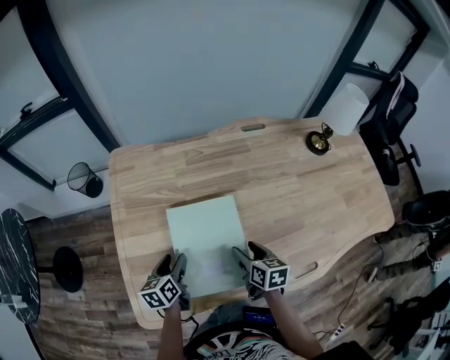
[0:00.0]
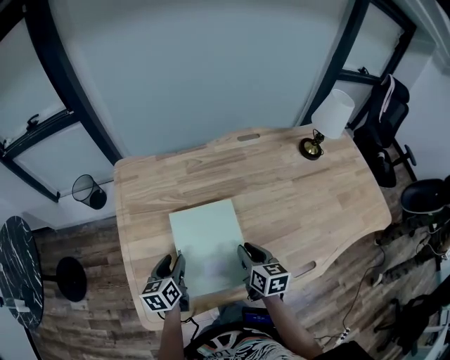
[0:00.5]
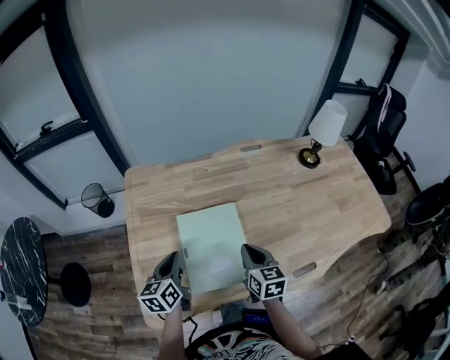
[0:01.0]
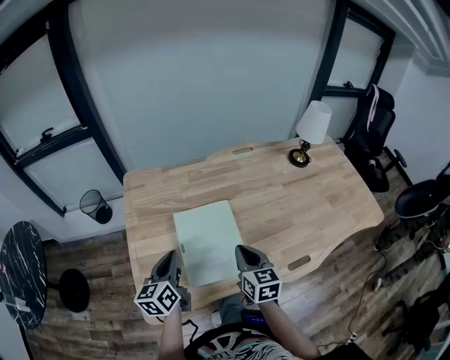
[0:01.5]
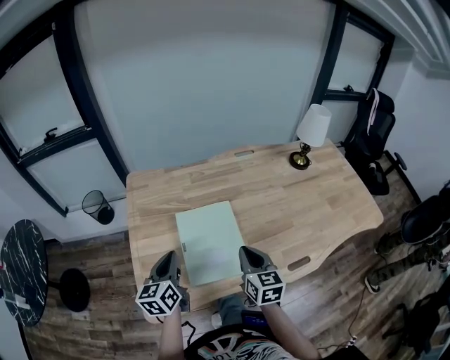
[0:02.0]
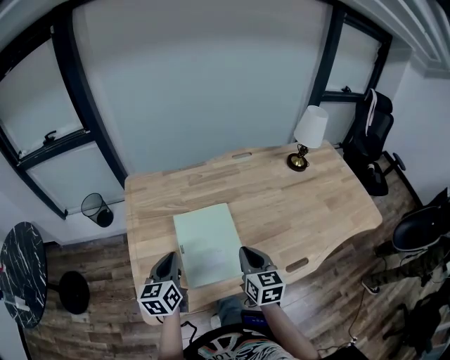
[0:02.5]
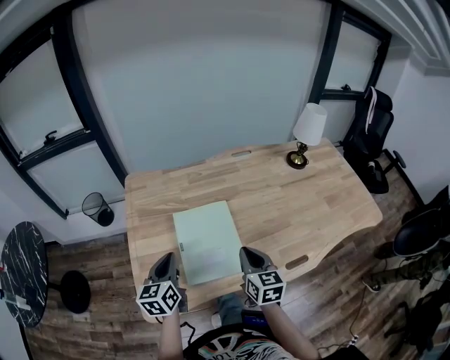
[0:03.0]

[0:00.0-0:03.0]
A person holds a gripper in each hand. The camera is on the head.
0:00.0 to 0:01.5: The left gripper is displaced upward by about 15 cm, swivels approximately 20 degrees, and closes its fingers; the right gripper moves upward and backward, about 15 cm, swivels approximately 30 degrees, and closes up.
0:01.5 to 0:03.0: The grippers stay close to where they were, moving slightly.

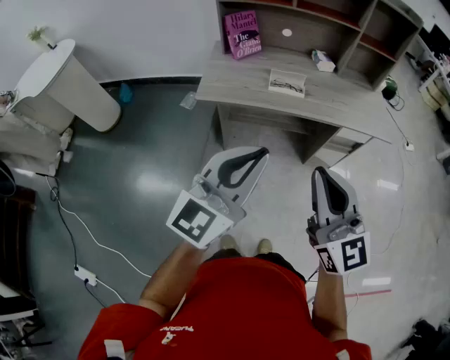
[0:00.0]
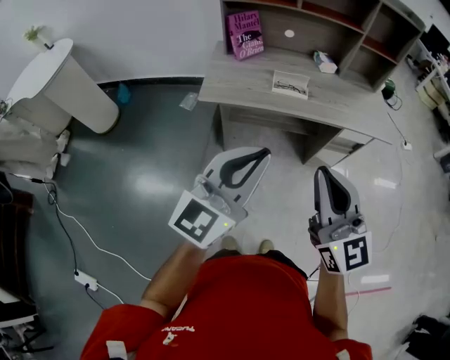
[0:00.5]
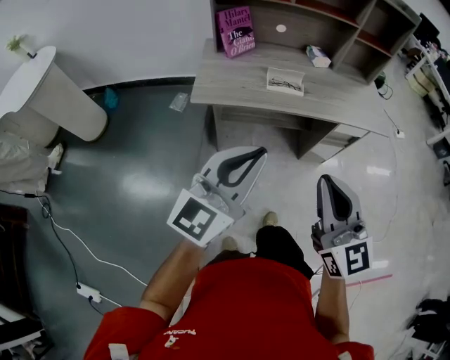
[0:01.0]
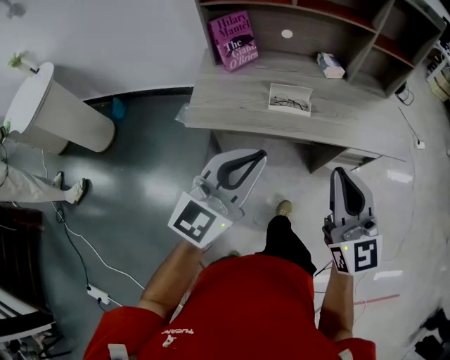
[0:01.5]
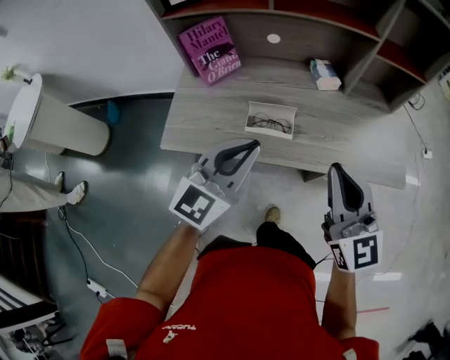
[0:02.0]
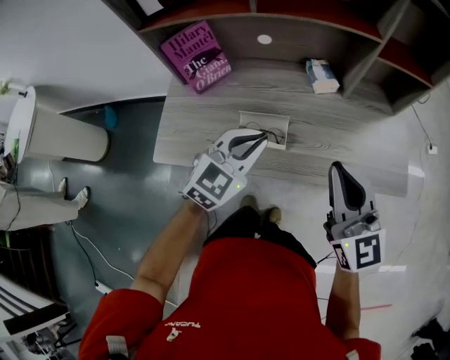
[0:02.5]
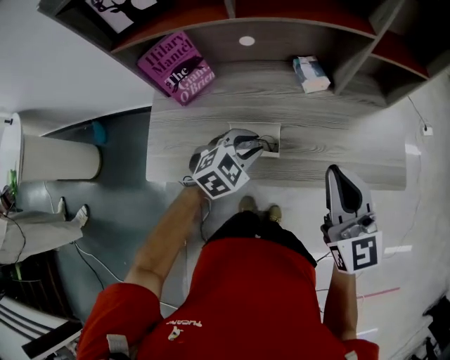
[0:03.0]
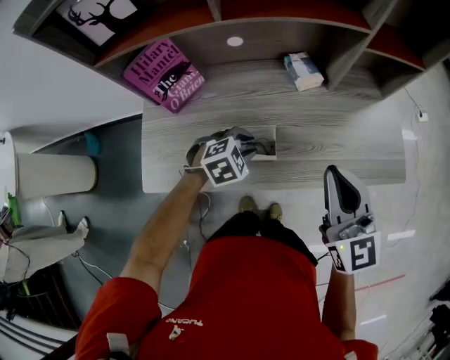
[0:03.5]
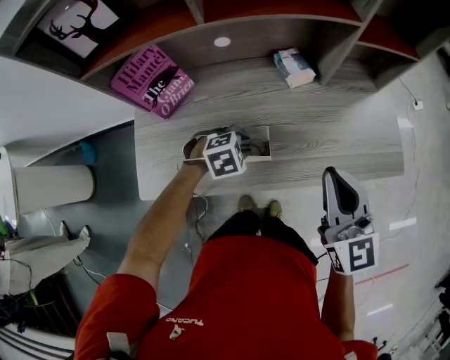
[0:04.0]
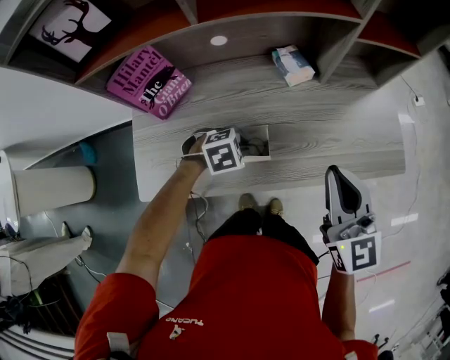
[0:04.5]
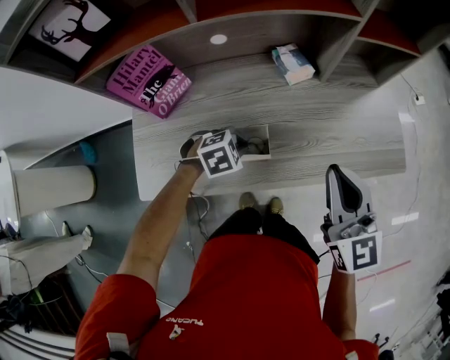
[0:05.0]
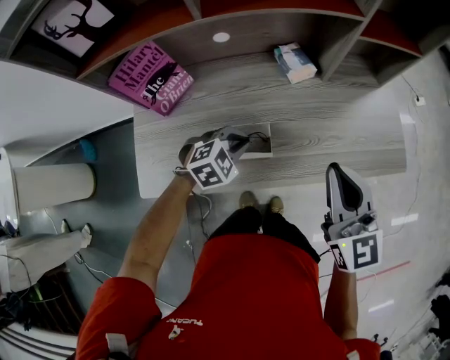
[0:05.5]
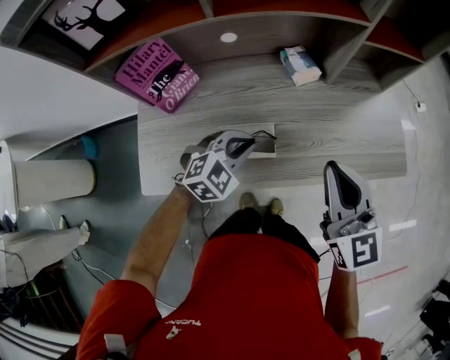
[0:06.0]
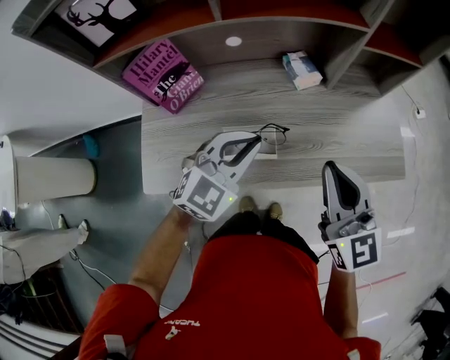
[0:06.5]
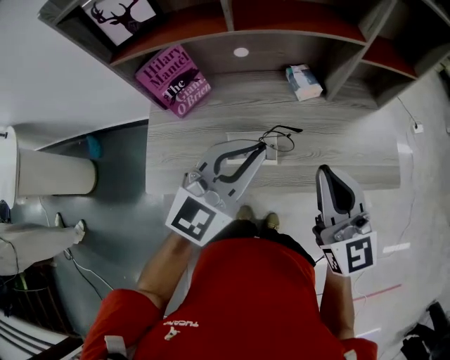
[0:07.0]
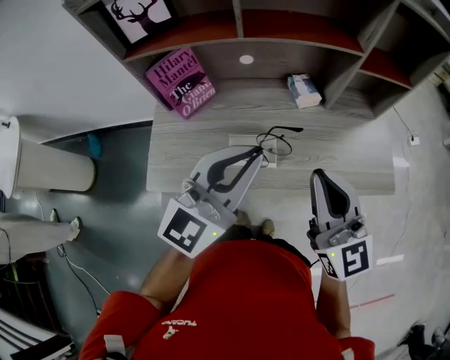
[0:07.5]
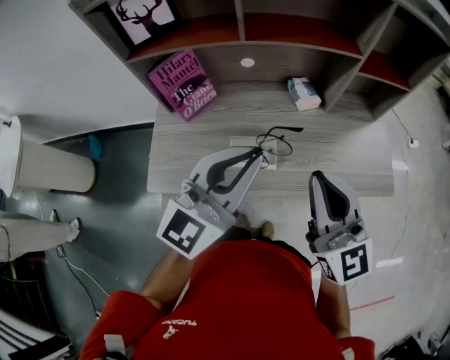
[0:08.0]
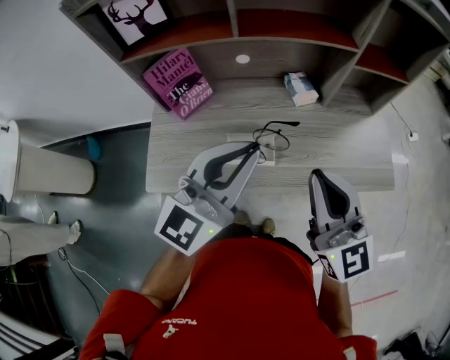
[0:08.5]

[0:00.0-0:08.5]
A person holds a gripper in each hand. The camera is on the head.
0:00.0 to 0:02.0: The two grippers go about 35 cm forward.
0:02.0 to 0:04.0: The right gripper ends up about 10 cm from where it was; the left gripper is displaced downward by about 25 cm, angles its fingers downward, by some 60 degrees, and opens its fingers.
0:04.0 to 0:06.5: The left gripper is displaced upward by some 20 cm, angles its fingers upward, by about 50 degrees, and closes.
0:06.5 to 0:08.5: The left gripper shifts roughly 15 cm upward and backward, and swivels some 30 degrees. Meanwhile the right gripper moves upward, approximately 5 cm.

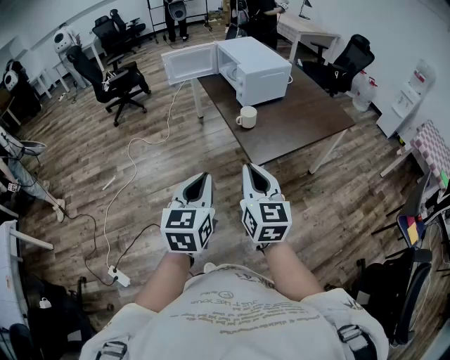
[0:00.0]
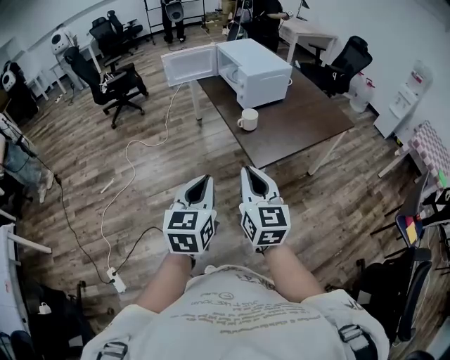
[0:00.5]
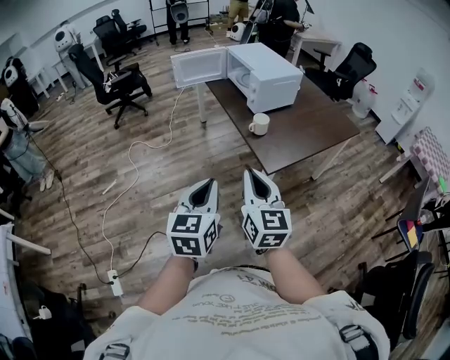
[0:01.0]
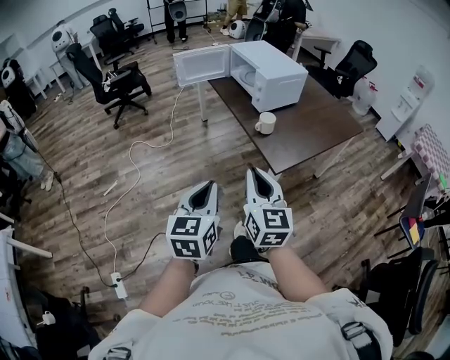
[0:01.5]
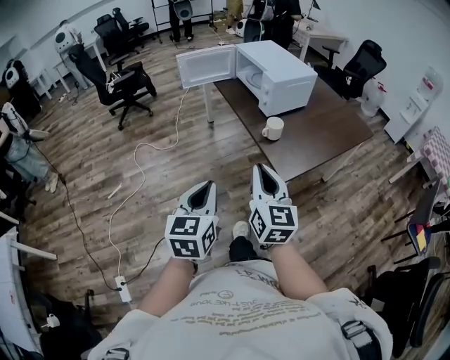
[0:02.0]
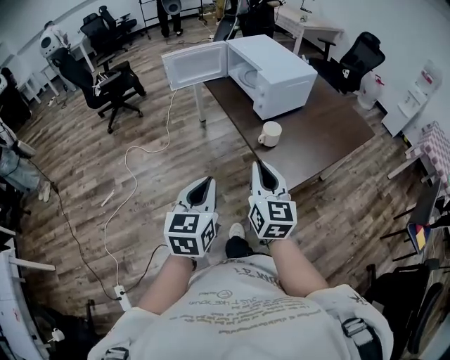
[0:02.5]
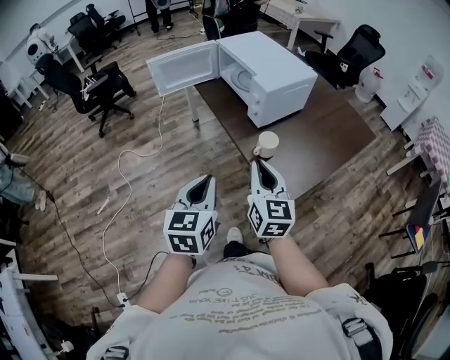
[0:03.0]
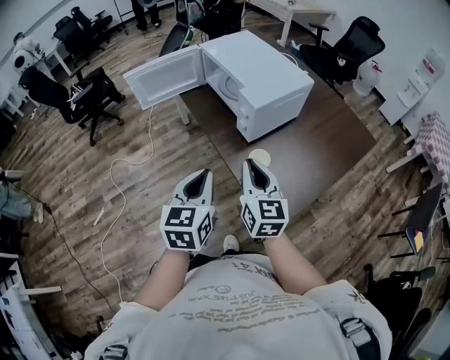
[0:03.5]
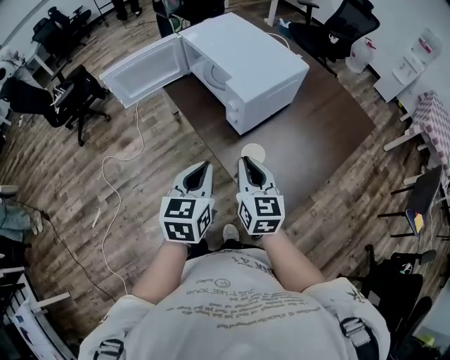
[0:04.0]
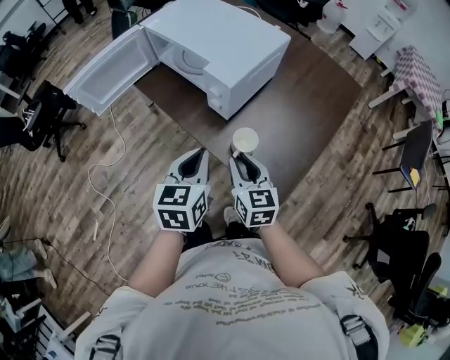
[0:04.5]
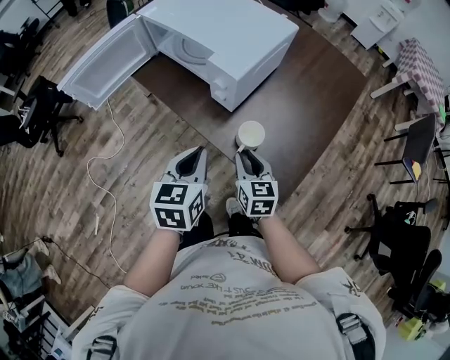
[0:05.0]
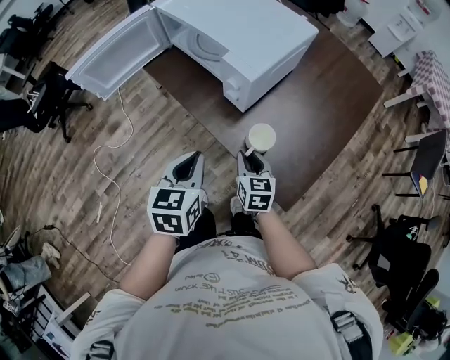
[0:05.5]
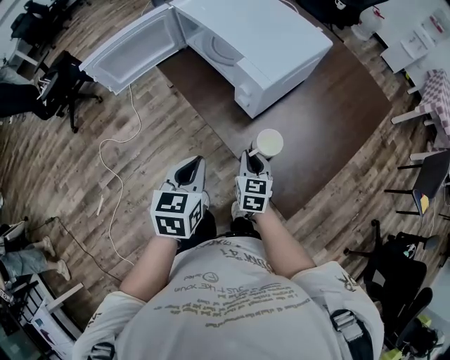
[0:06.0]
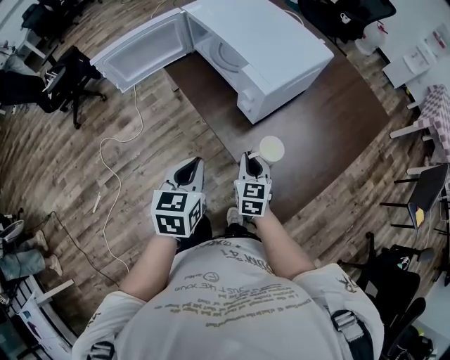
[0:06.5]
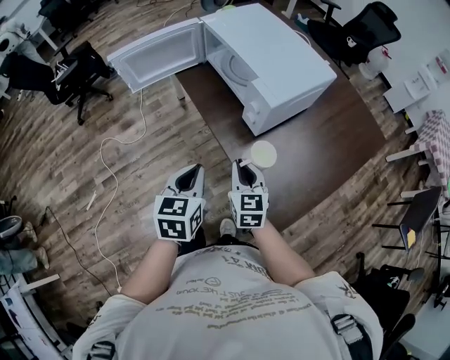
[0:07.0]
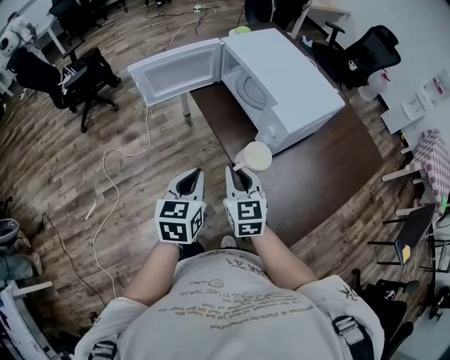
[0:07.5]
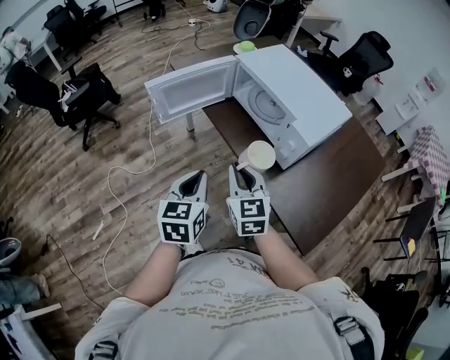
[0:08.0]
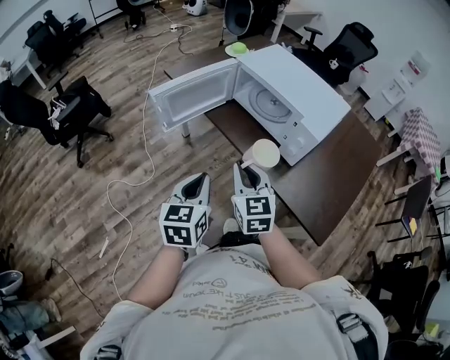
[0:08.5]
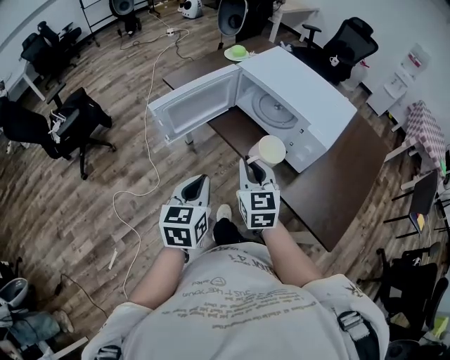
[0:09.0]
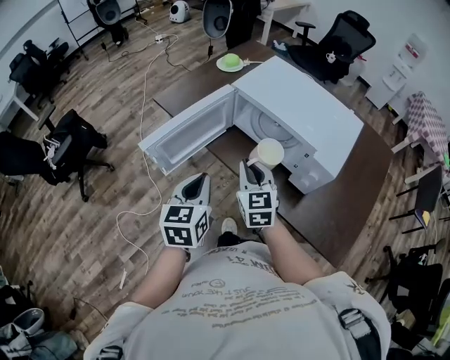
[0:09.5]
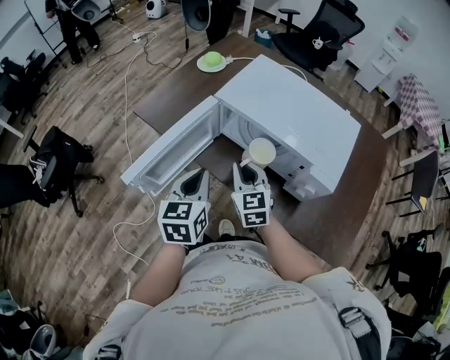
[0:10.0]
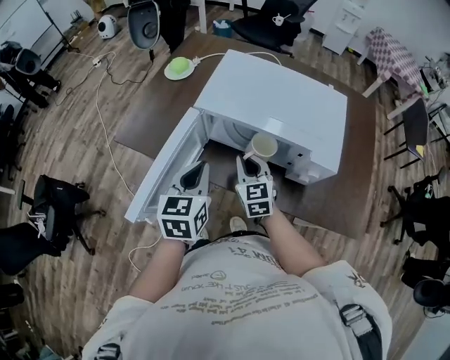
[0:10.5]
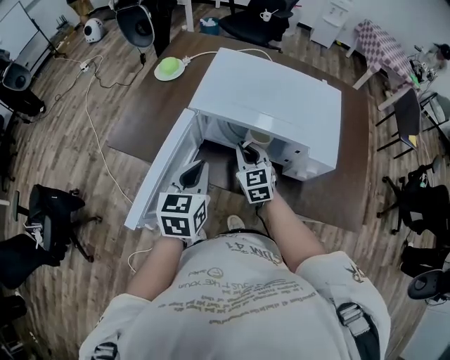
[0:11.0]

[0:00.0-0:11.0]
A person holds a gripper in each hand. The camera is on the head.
0:00.0 to 0:02.0: Both grippers travel together to the left and forward, roughly 15 cm.
0:02.0 to 0:03.5: Both grippers move forward, about 30 cm.
0:03.5 to 0:05.5: The right gripper shifts roughly 20 cm downward, and rotates about 30 degrees, while the left gripper is displaced forward and downward by roughly 15 cm, and changes its angle by roughly 20 degrees.
0:05.5 to 0:07.5: The right gripper goes approximately 20 cm upward and to the left, and changes its angle by approximately 30 degrees, while the left gripper goes approximately 10 cm to the left.
0:07.5 to 0:09.0: Both grippers move to the left and forward, some 15 cm.
0:09.0 to 0:11.0: The left gripper changes place by approximately 30 cm, and turns by some 30 degrees. Meanwhile the right gripper changes place by roughly 30 cm, and rotates about 20 degrees.

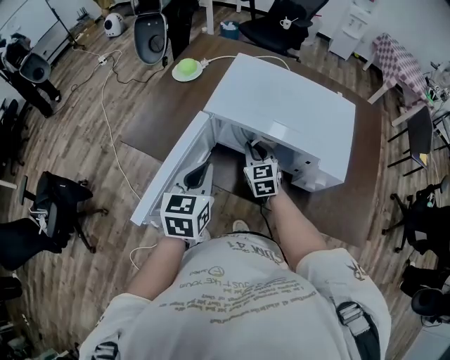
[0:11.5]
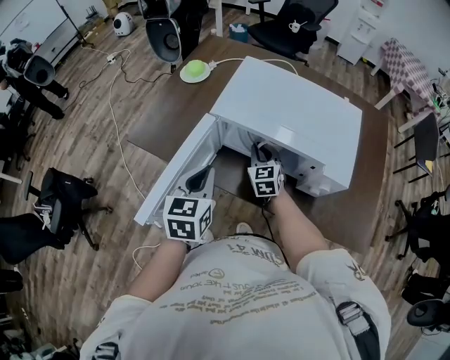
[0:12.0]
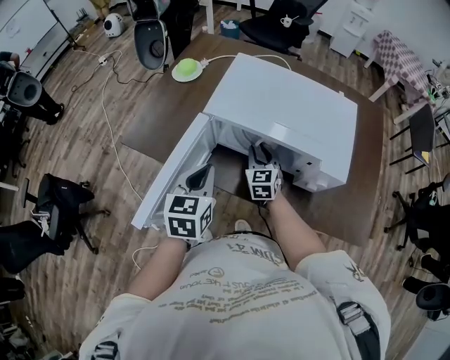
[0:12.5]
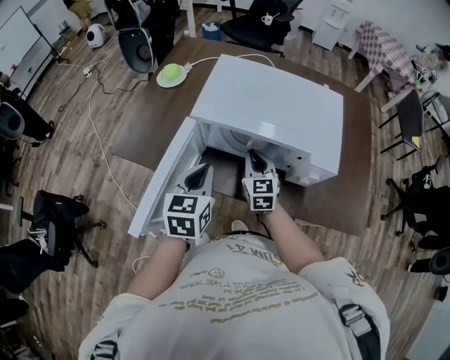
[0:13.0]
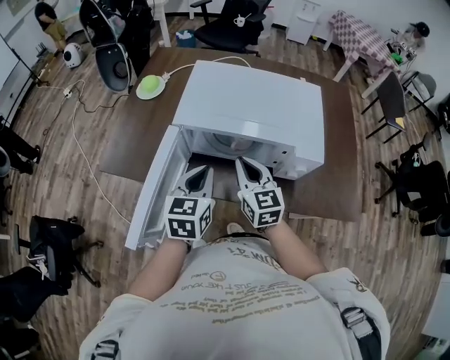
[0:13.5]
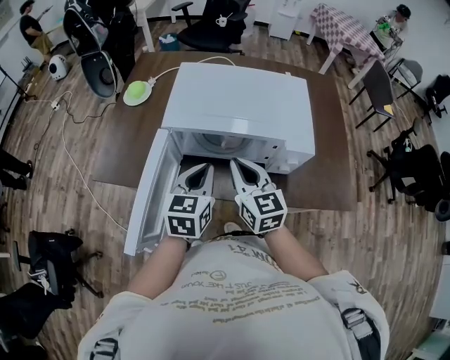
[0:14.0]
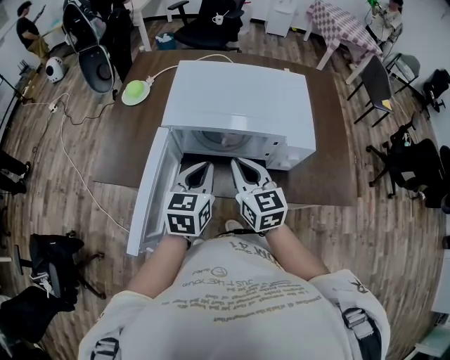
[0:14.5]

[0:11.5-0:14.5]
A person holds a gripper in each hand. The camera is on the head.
0:11.5 to 0:13.0: The grippers stay close to where they were, moving slightly.
0:13.0 to 0:14.5: The right gripper moves upward and backward, roughly 15 cm. The left gripper moves to the right, about 5 cm.
